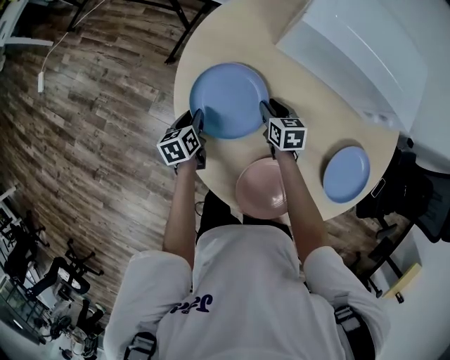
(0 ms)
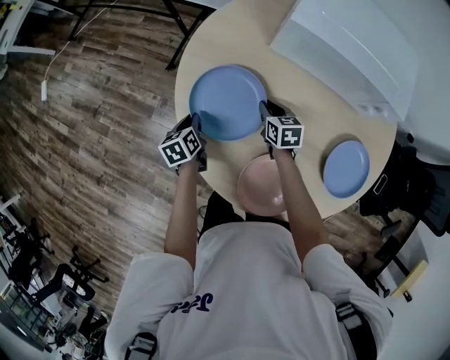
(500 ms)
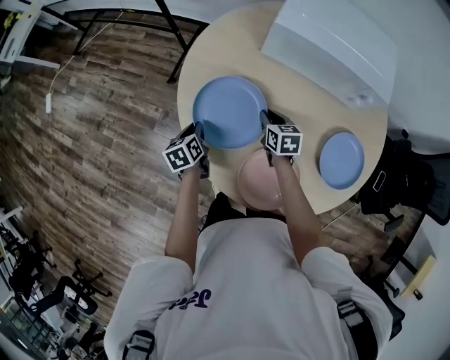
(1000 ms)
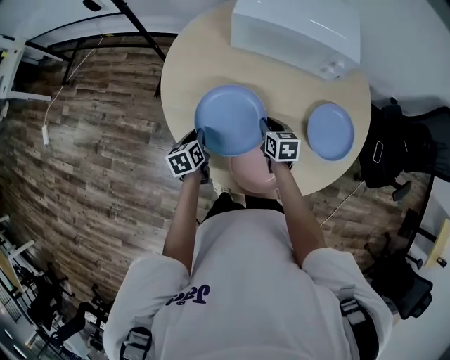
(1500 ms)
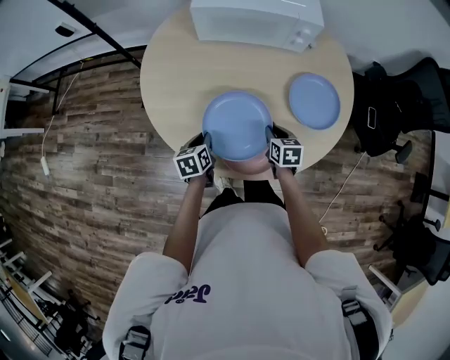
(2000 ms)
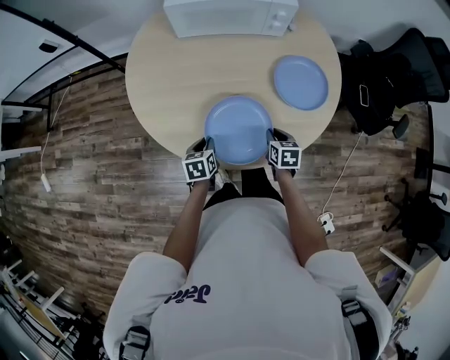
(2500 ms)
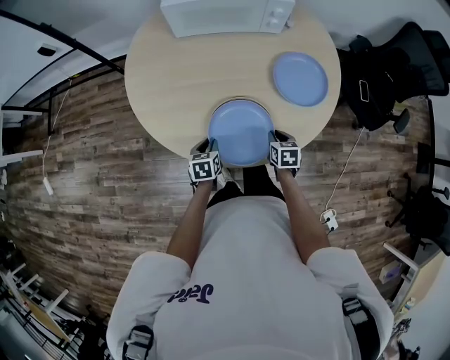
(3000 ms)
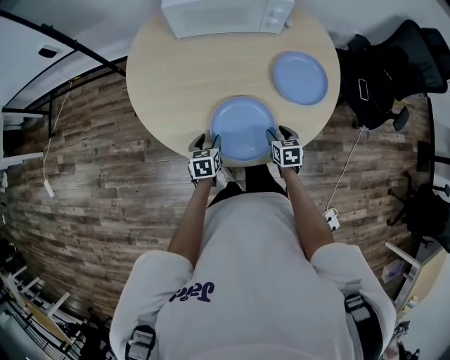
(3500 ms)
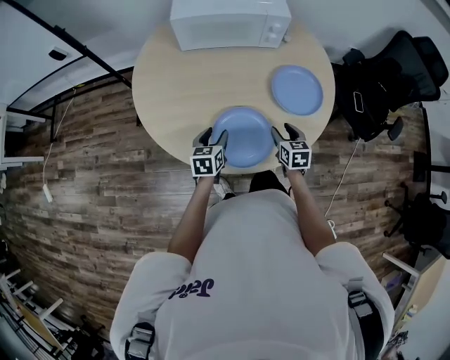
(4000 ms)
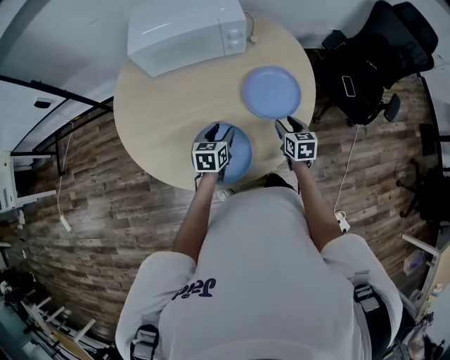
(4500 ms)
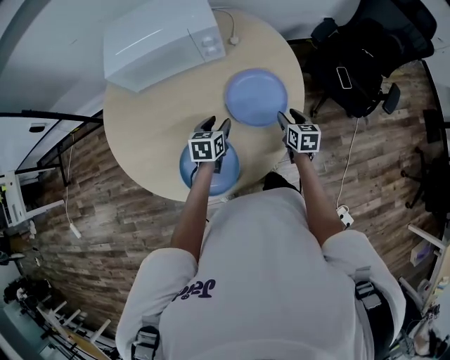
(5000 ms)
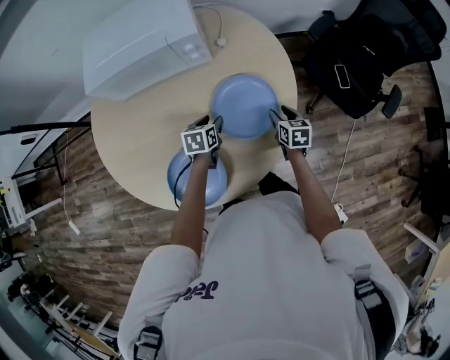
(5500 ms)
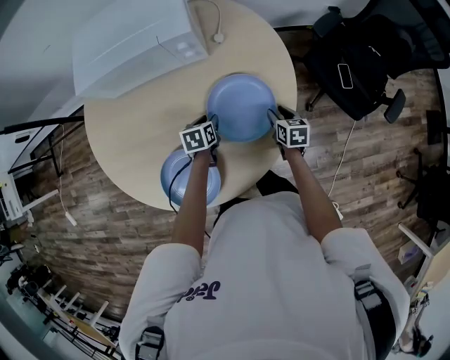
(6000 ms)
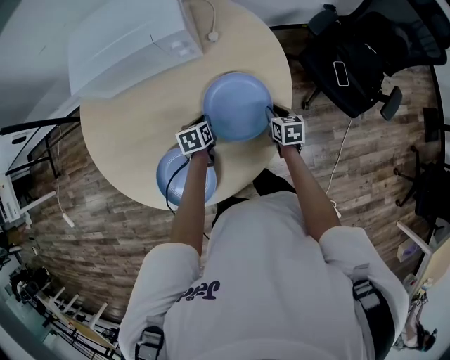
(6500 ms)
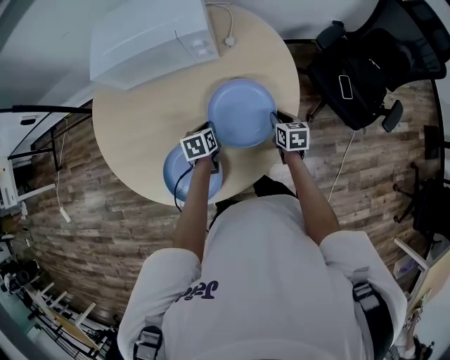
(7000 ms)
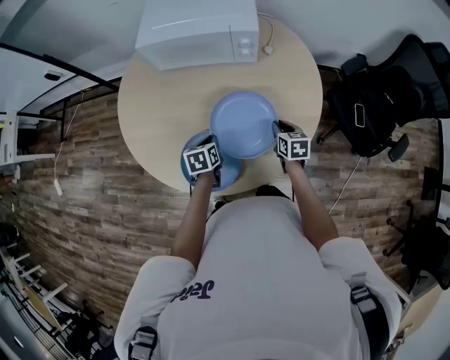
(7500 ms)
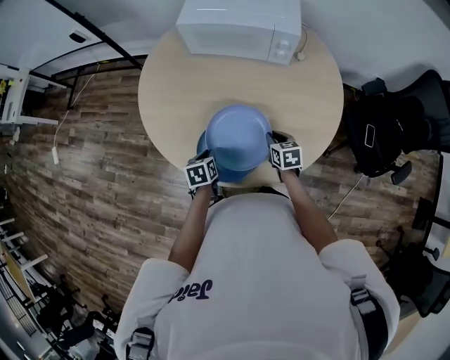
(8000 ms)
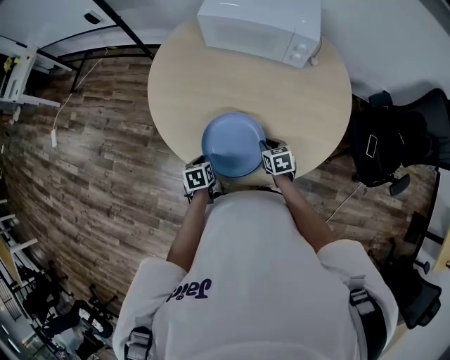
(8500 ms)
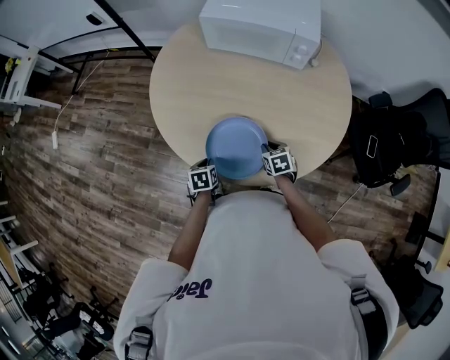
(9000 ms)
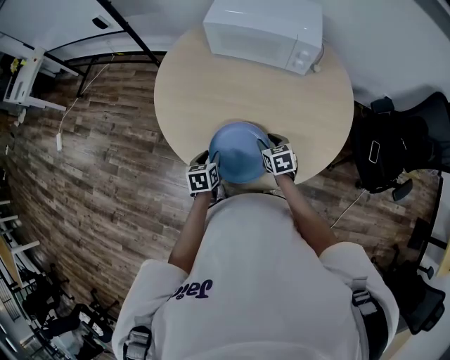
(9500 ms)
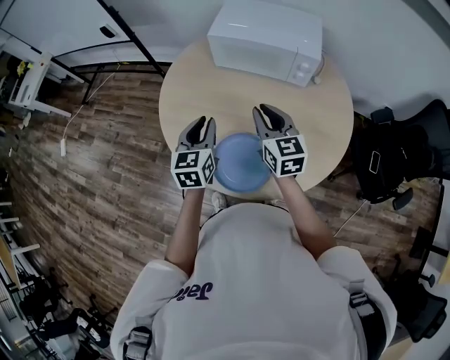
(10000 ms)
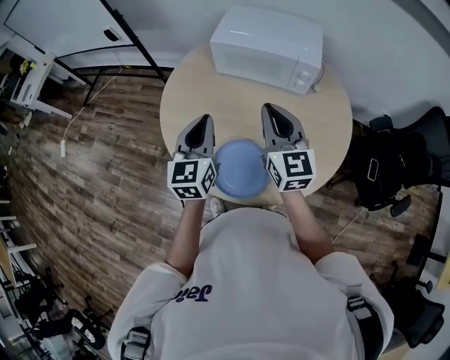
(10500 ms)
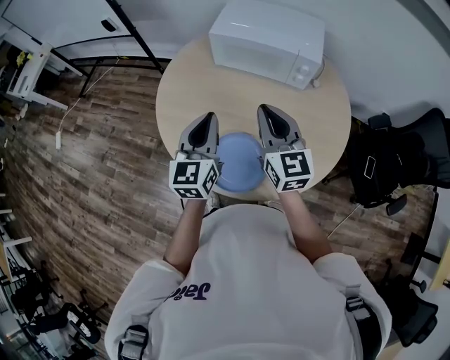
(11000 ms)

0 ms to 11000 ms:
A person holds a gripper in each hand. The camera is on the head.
0 ms to 2000 ms: The right gripper ends up roughly 30 cm from where it was, and swivels about 30 degrees; the left gripper shifts by roughly 20 cm, and rotates about 30 degrees.
2000 ms to 3500 ms: The left gripper travels to the right by approximately 5 cm, and opens up; the right gripper goes approximately 10 cm backward and to the right, and opens its fingers.
3500 ms to 5500 ms: The right gripper shifts approximately 30 cm to the right and forward, while the left gripper shifts about 35 cm forward and to the right.
5500 ms to 7500 ms: The left gripper heads backward and to the left, covering some 15 cm, swivels some 20 degrees, and closes; the right gripper heads to the left, covering approximately 10 cm, and closes.
7500 ms to 9000 ms: The left gripper moves to the left, backward and downward, about 20 cm, while the right gripper moves to the left, approximately 20 cm, and turns by about 30 degrees.
9000 ms to 11000 ms: Both grippers travel together upward, roughly 35 cm. The right gripper points its fingers some 50 degrees further upward. The left gripper points its fingers some 50 degrees further upward, and opens and closes again.

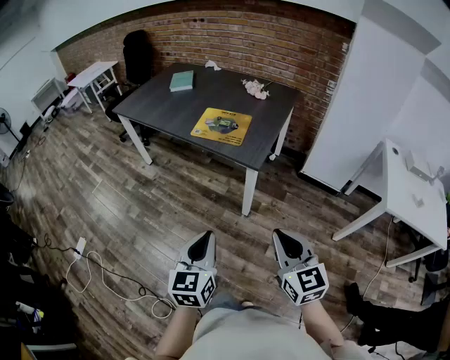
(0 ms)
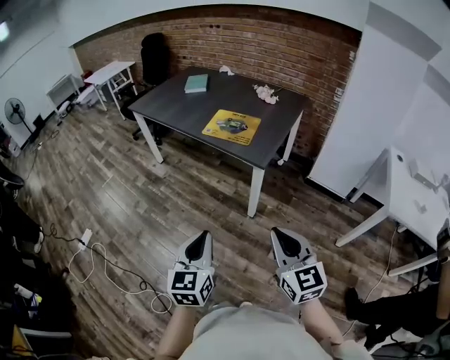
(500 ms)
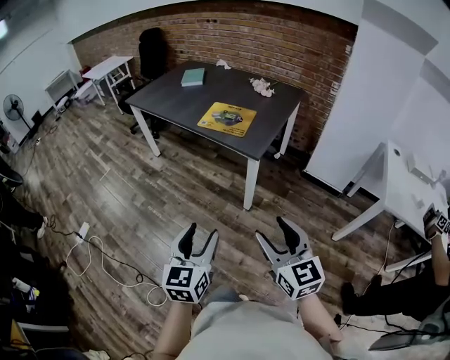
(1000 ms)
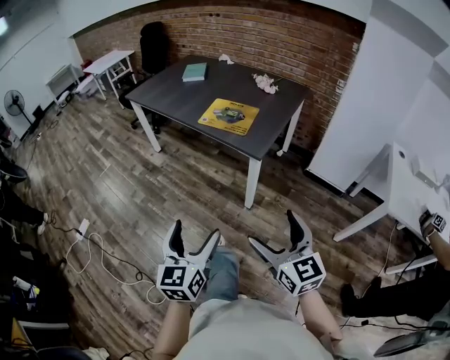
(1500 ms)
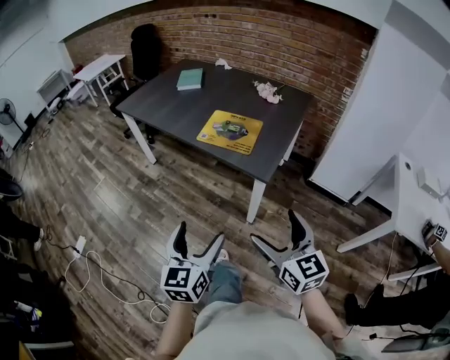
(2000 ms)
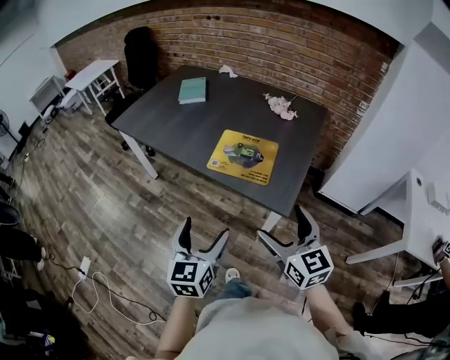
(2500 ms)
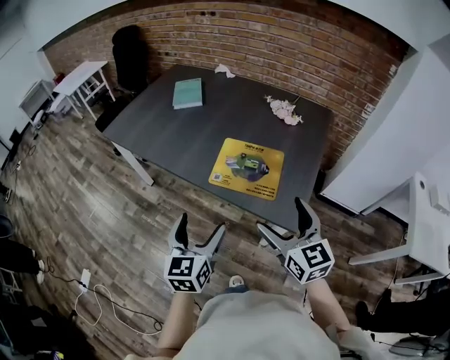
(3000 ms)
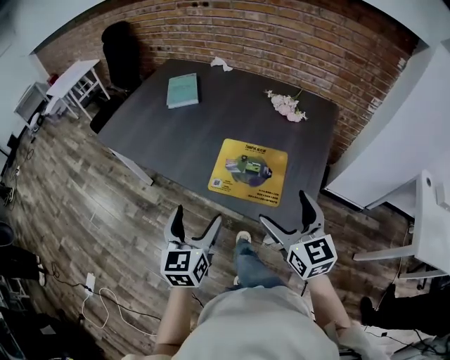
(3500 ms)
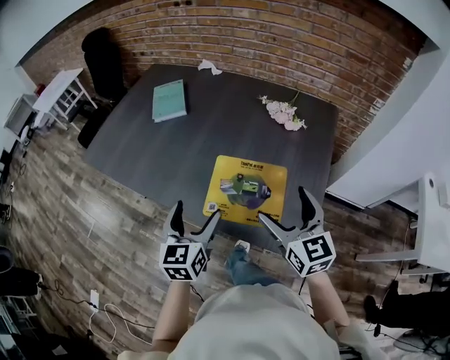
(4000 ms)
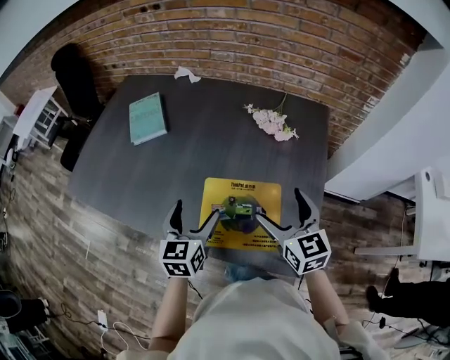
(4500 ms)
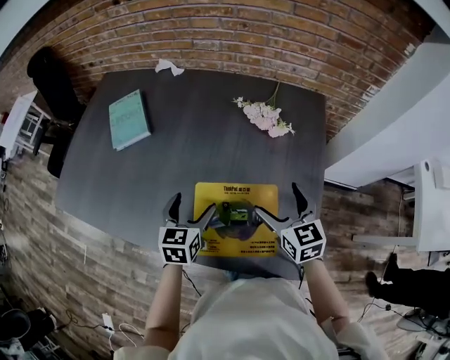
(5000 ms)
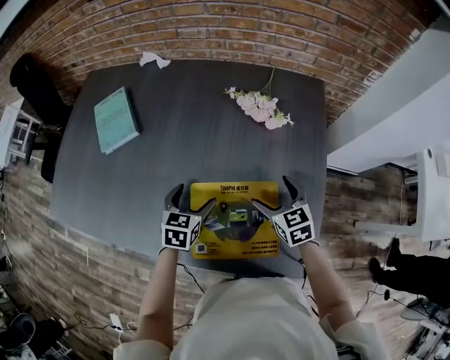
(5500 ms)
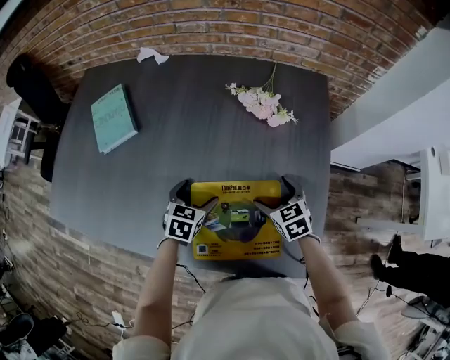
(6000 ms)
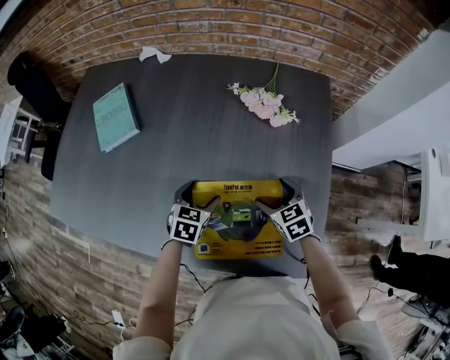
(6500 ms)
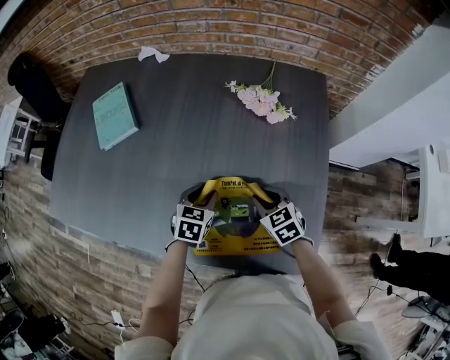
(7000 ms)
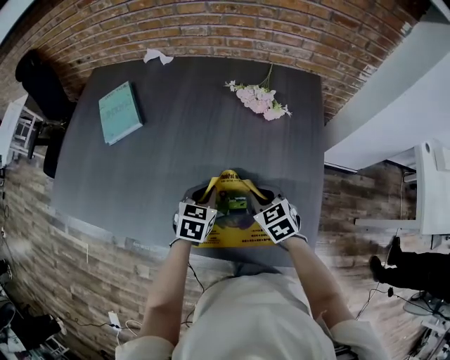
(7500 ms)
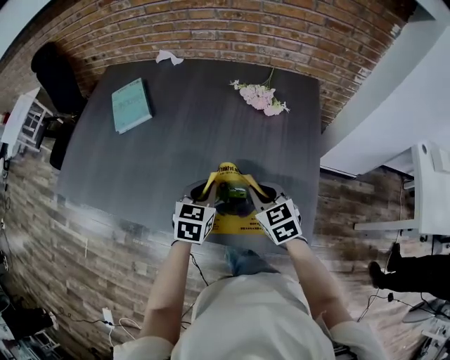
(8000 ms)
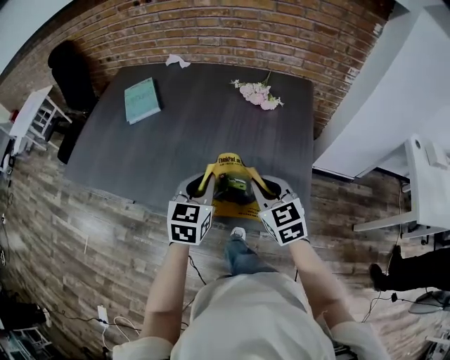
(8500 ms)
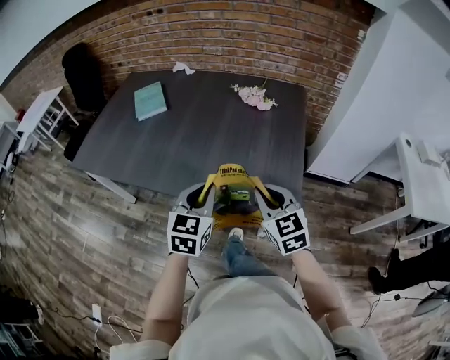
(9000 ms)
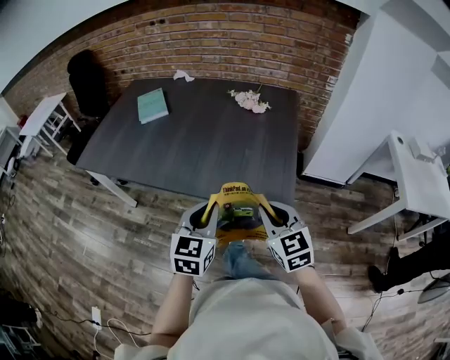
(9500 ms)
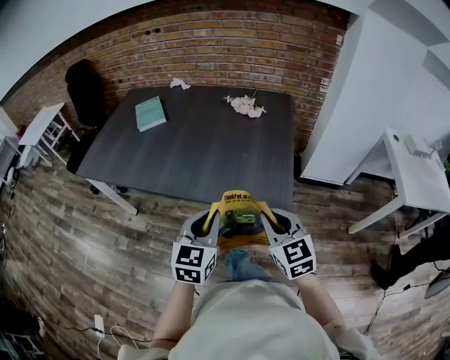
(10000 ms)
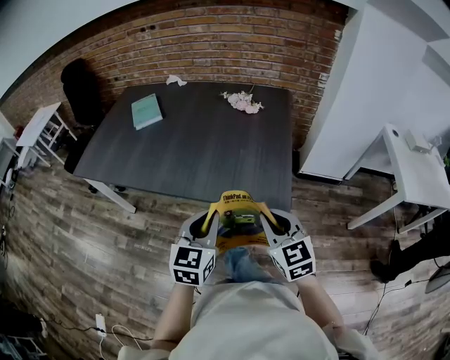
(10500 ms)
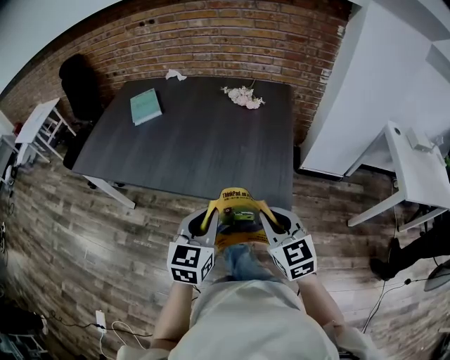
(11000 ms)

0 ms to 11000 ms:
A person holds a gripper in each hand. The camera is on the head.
0 ms to 2000 ms: Both grippers travel together forward, about 10 cm. The left gripper opens, while the right gripper opens its fingers.
2000 ms to 3500 ms: Both grippers travel together forward, some 35 cm.
3500 ms to 5500 ms: Both grippers travel together forward and downward, about 35 cm. The right gripper changes its angle by roughly 30 degrees. The left gripper rotates approximately 40 degrees.
5500 ms to 7500 ms: The left gripper closes its fingers. Meanwhile the right gripper ends up approximately 5 cm from where it was, and closes up.
7500 ms to 9000 ms: The grippers both shift backward and upward by roughly 30 cm. The right gripper turns by roughly 20 degrees. The left gripper rotates about 30 degrees.
9000 ms to 11000 ms: The grippers both shift backward by about 10 cm.

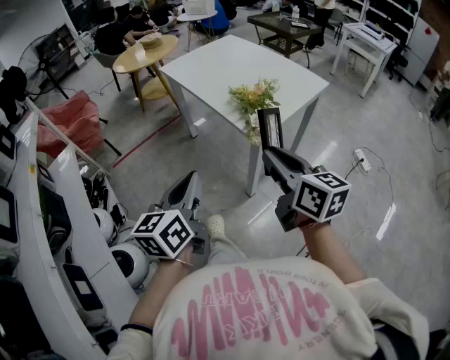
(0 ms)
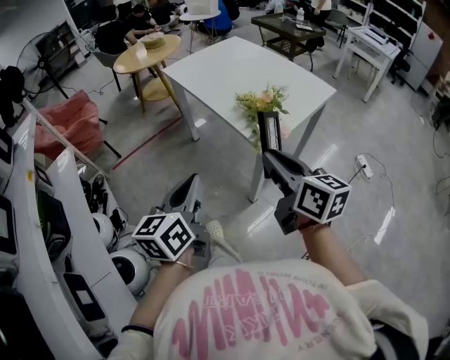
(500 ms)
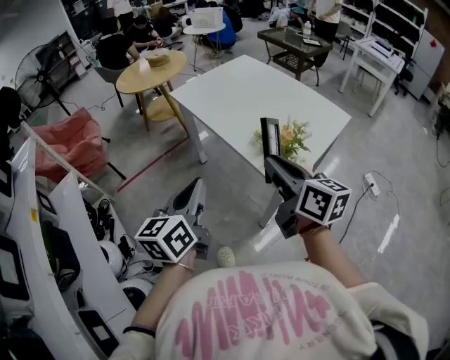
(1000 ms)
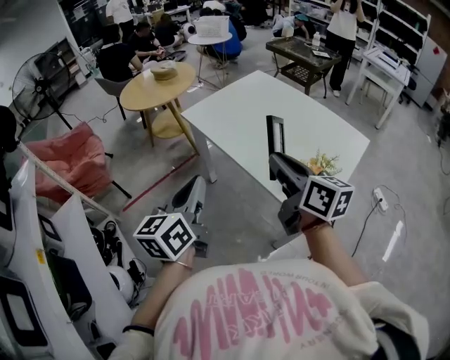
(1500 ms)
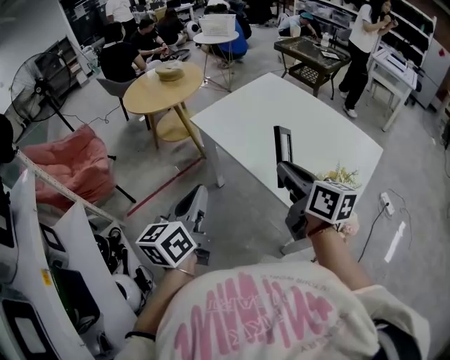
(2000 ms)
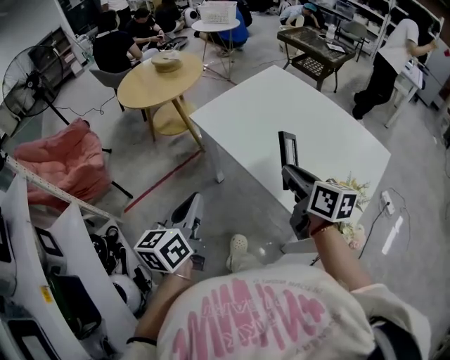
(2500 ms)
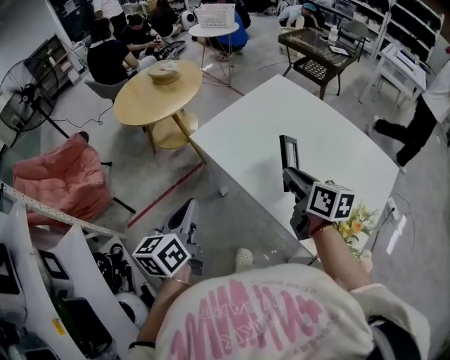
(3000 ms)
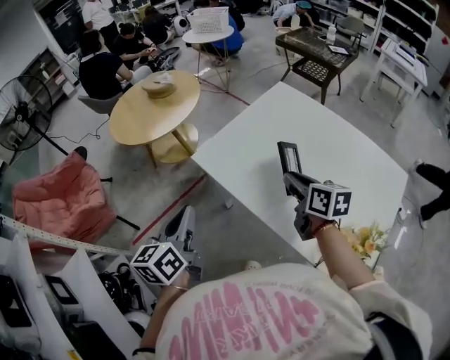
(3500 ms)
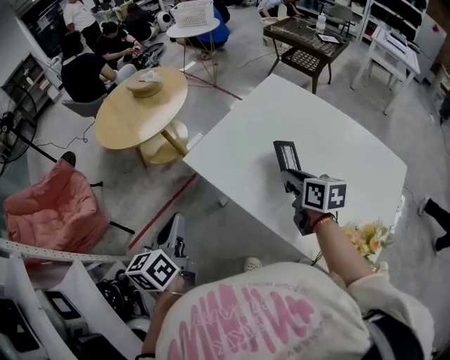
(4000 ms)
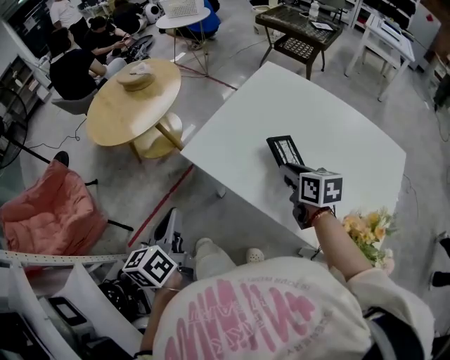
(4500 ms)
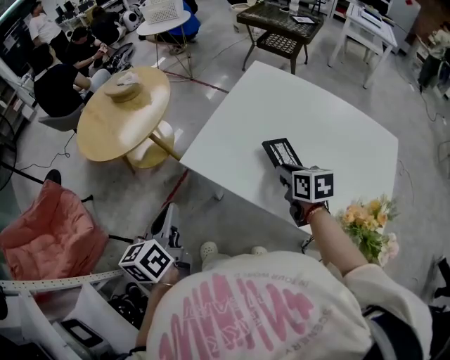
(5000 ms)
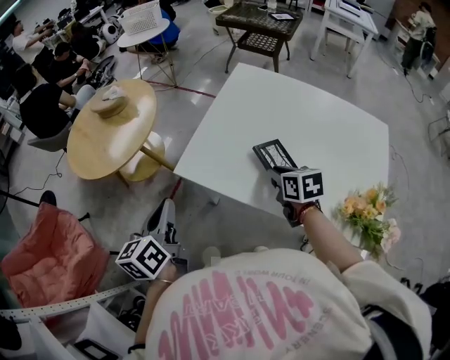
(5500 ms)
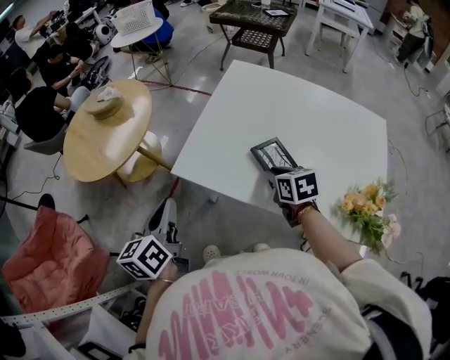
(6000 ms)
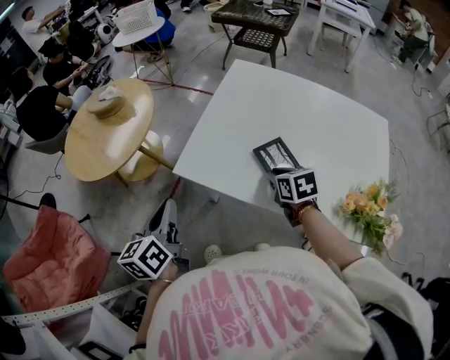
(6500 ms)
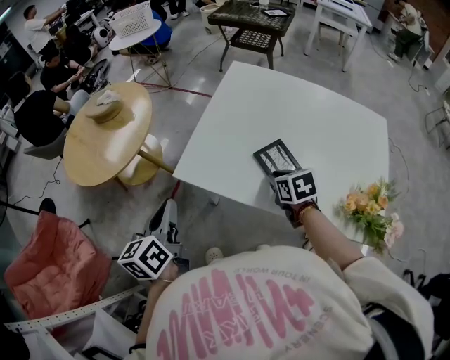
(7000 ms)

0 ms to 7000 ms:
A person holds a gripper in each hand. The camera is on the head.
0 ms to 2000 ms: Both grippers are carried forward and to the left, some 40 cm.
2000 ms to 3500 ms: The right gripper travels forward and downward by about 25 cm, while the left gripper travels forward by some 20 cm.
3500 ms to 5000 ms: The left gripper travels forward and to the left by about 10 cm. Meanwhile the right gripper travels downward by about 10 cm.
5000 ms to 7000 ms: The left gripper goes some 5 cm forward.
